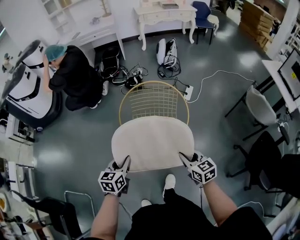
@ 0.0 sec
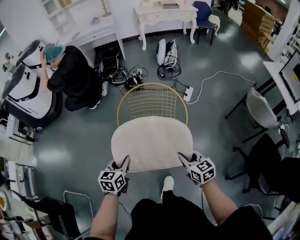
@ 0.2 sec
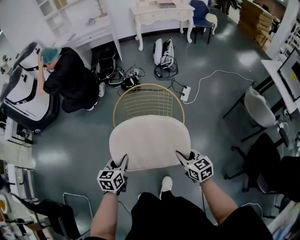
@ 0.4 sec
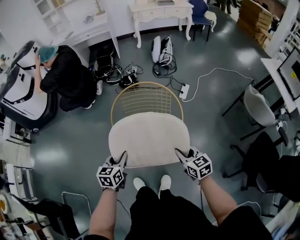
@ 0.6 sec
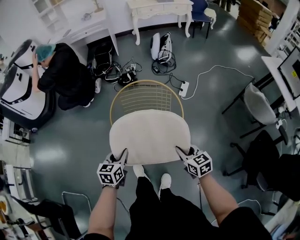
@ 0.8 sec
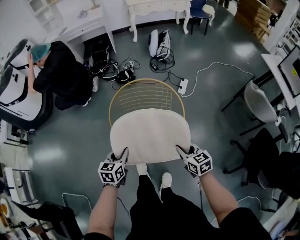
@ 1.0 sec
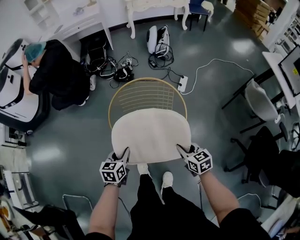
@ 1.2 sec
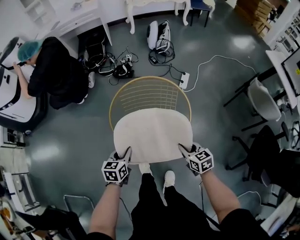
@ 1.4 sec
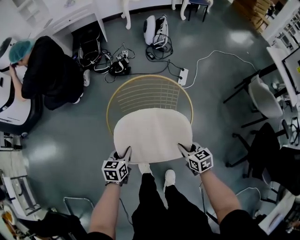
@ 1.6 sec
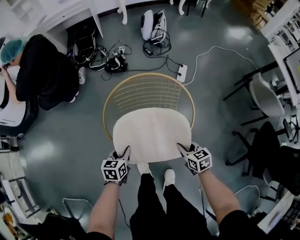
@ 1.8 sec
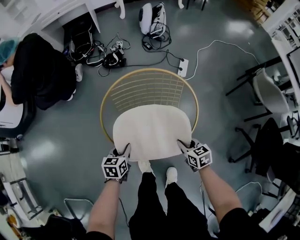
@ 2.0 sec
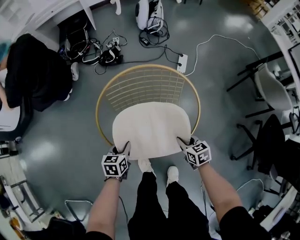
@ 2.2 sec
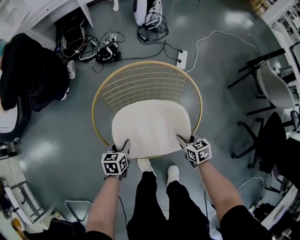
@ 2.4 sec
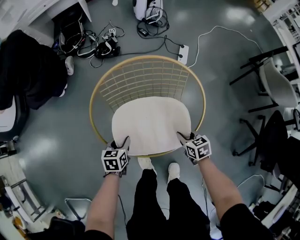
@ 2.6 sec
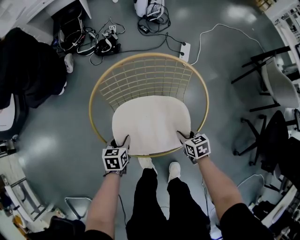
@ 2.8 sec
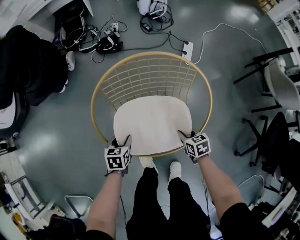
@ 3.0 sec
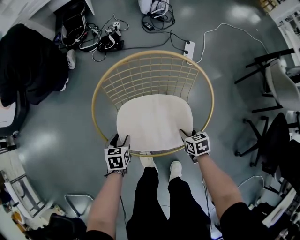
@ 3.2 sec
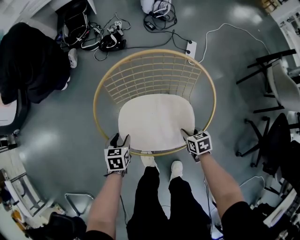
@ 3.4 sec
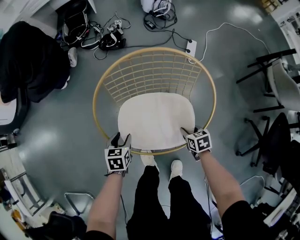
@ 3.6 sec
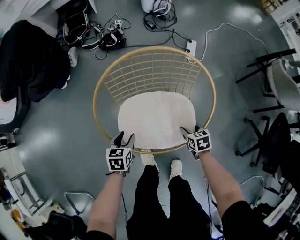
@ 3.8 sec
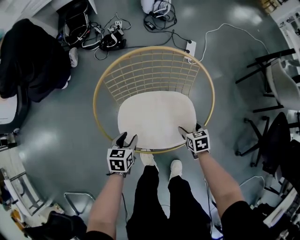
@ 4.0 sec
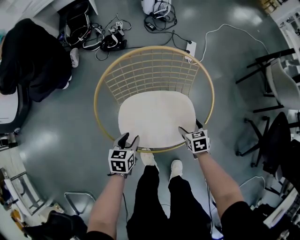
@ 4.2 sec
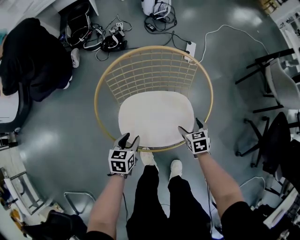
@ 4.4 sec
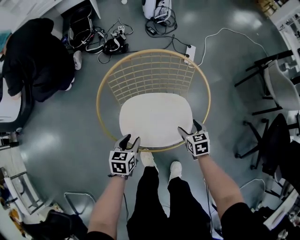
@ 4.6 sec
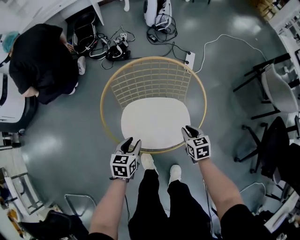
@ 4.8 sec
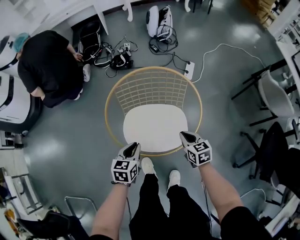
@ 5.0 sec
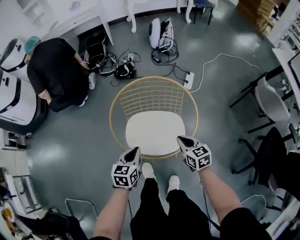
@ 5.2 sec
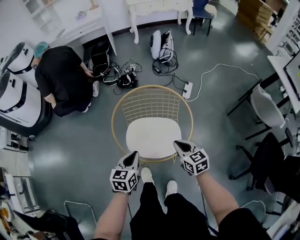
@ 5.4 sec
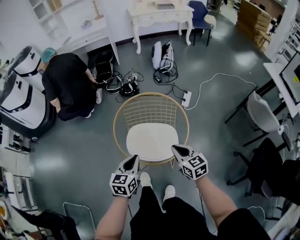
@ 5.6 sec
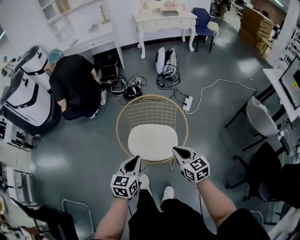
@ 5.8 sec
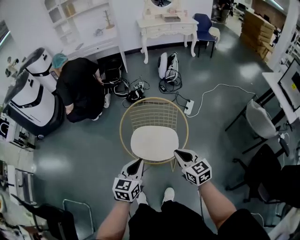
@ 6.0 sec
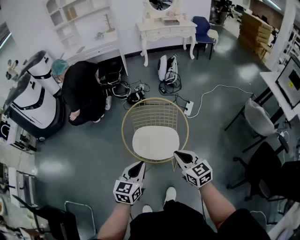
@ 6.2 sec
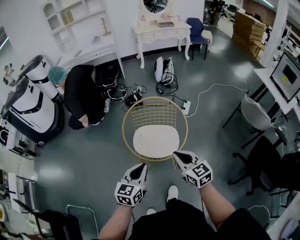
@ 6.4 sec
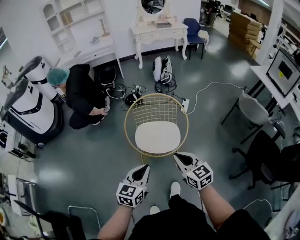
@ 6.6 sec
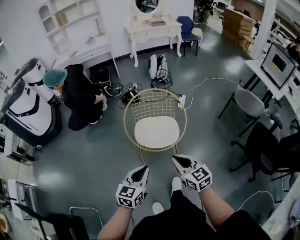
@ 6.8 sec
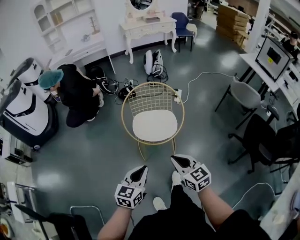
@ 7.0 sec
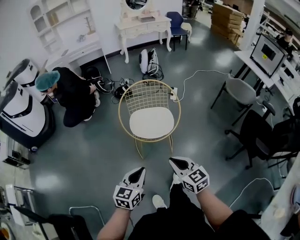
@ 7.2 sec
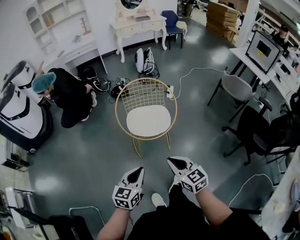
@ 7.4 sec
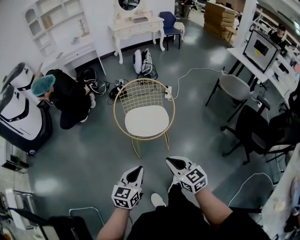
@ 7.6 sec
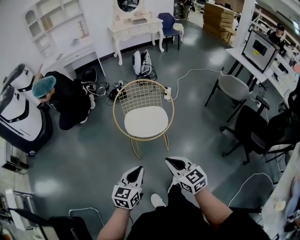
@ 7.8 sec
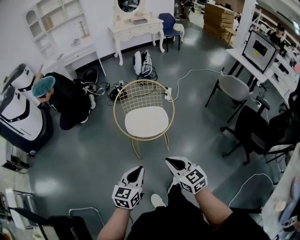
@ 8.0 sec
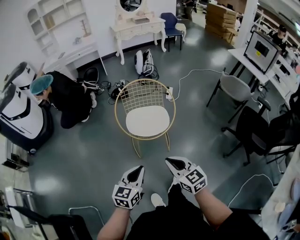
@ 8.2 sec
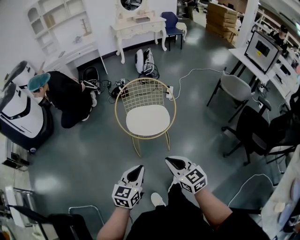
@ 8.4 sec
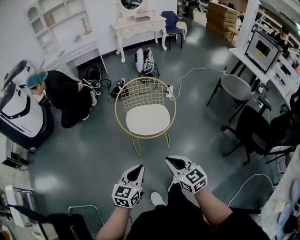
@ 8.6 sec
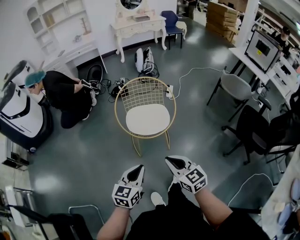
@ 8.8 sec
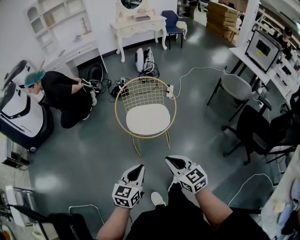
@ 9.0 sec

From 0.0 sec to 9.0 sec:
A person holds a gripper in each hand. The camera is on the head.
From 0.0 sec to 1.6 sec: The right gripper travels downward and forward by roughly 20 cm. The left gripper travels forward and downward by roughly 25 cm.
From 1.6 sec to 3.0 sec: The two grippers go about 20 cm downward. The left gripper opens its fingers.
From 3.0 sec to 4.4 sec: The left gripper moves about 5 cm. Meanwhile the right gripper opens up.
From 4.4 sec to 6.0 sec: The right gripper moves upward, about 40 cm, angles its fingers upward, by approximately 30 degrees, and closes up; the left gripper travels upward and backward by approximately 40 cm, changes its angle by approximately 30 degrees, and closes.
From 6.0 sec to 7.6 sec: The right gripper heads backward and to the left, covering about 30 cm. Meanwhile the left gripper moves backward, roughly 25 cm.
From 7.6 sec to 9.0 sec: The two grippers keep their place.

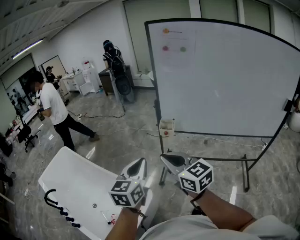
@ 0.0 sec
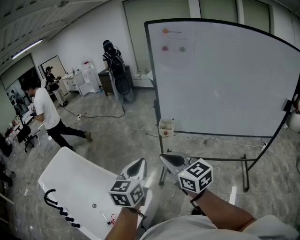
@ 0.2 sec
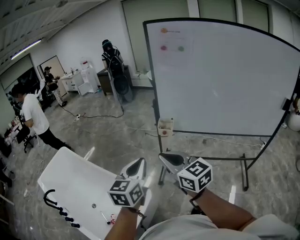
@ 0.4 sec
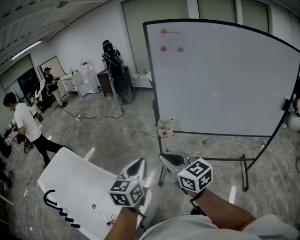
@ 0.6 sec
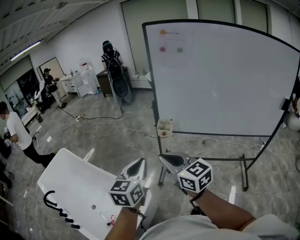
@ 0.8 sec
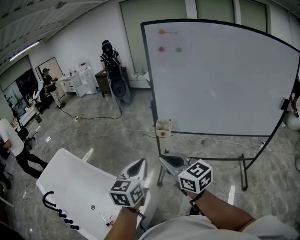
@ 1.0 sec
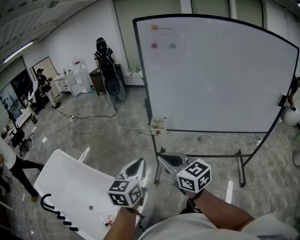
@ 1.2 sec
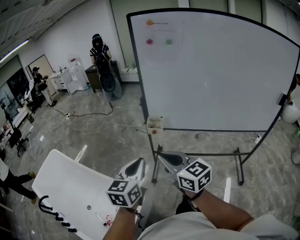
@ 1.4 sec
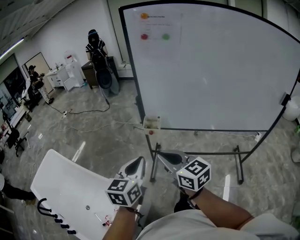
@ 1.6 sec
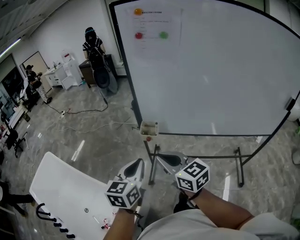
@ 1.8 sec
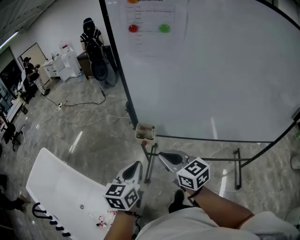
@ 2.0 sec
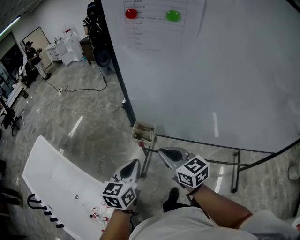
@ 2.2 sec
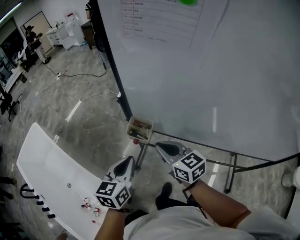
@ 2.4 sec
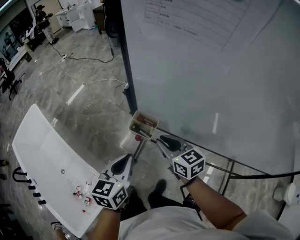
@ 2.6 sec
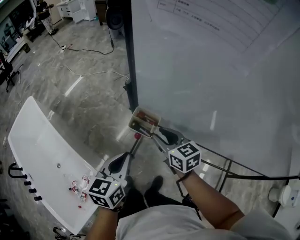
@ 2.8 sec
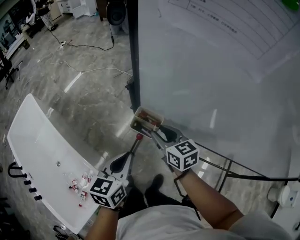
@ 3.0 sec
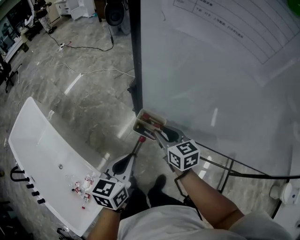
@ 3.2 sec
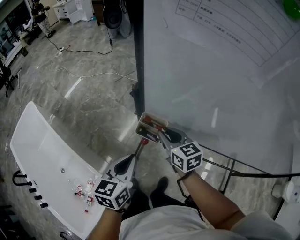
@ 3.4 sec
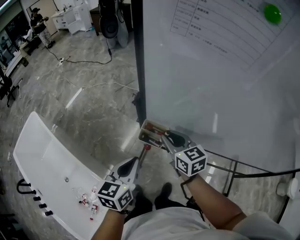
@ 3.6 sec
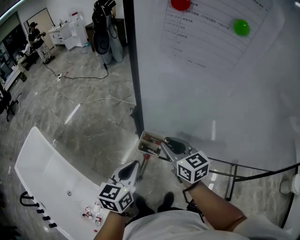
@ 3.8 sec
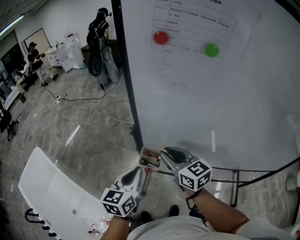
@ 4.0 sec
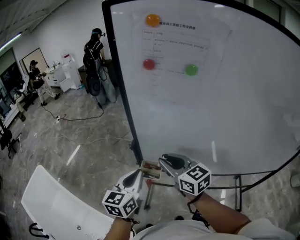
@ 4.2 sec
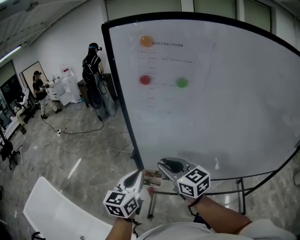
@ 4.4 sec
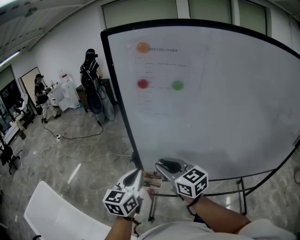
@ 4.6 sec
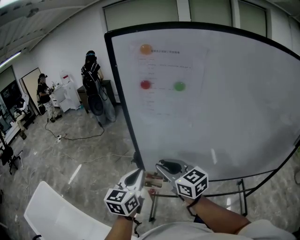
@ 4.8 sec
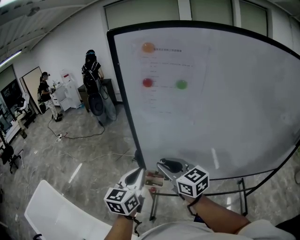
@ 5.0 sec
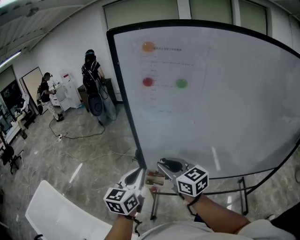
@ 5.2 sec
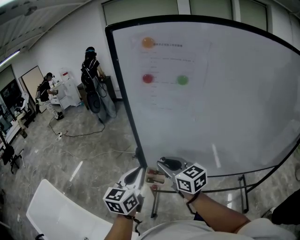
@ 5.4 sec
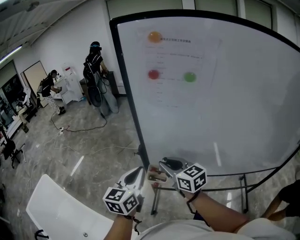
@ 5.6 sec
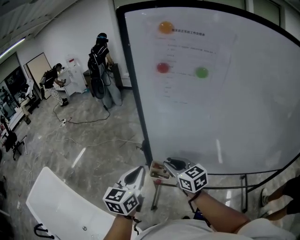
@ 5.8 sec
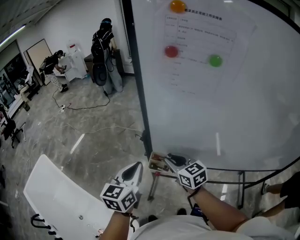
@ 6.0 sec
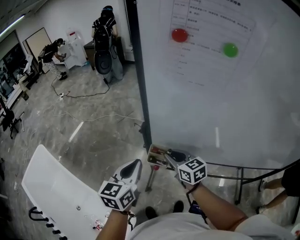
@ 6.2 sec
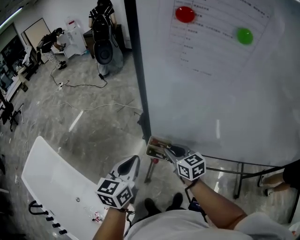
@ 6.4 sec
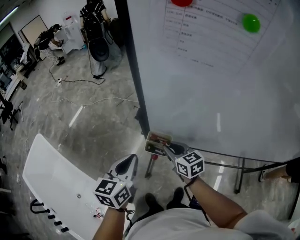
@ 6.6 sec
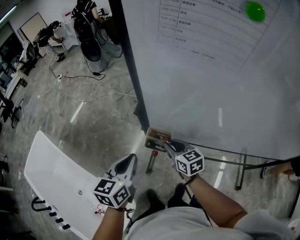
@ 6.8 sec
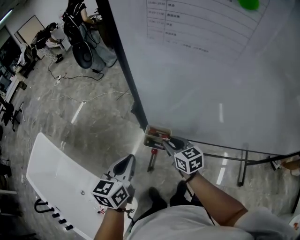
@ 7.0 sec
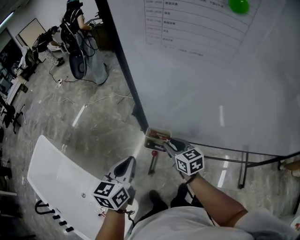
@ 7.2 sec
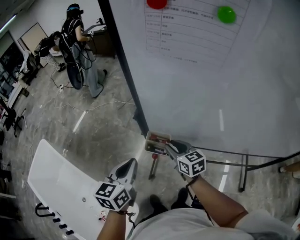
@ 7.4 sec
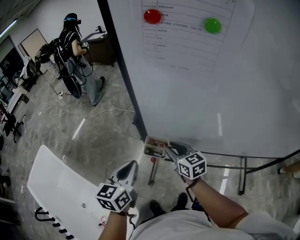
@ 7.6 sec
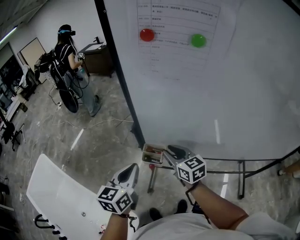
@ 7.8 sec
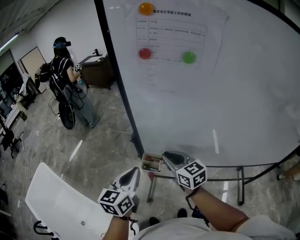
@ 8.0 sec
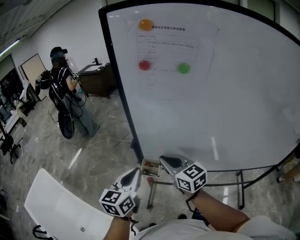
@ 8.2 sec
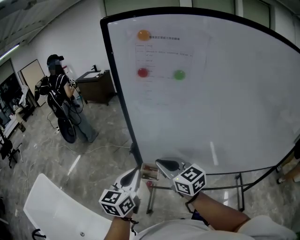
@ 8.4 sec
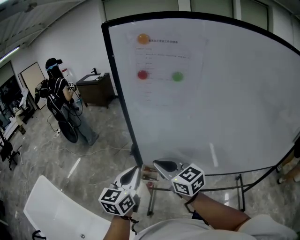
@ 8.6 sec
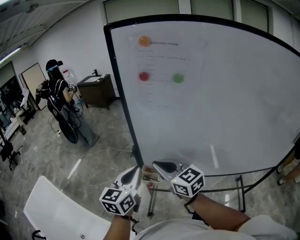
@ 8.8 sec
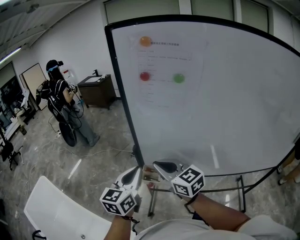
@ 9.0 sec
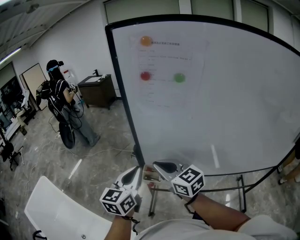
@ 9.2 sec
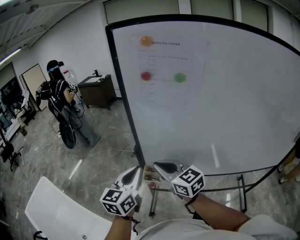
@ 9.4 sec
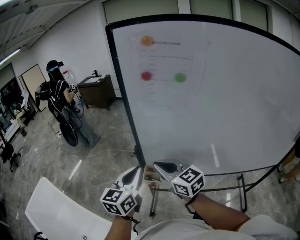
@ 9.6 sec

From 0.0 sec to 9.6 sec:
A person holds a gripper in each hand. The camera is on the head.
From 0.0 sec to 1.6 sec: The right gripper moves forward and to the right, roughly 10 cm. The left gripper is displaced to the right and forward by about 10 cm.
From 1.6 sec to 3.2 sec: Both grippers move forward and downward, some 35 cm. The right gripper opens up. Meanwhile the left gripper swivels roughly 20 degrees.
From 3.2 sec to 4.8 sec: The two grippers go some 25 cm upward. The right gripper swivels some 20 degrees; the left gripper rotates approximately 30 degrees.
From 4.8 sec to 6.4 sec: The left gripper shifts approximately 15 cm downward and to the left. Meanwhile the right gripper is displaced downward by roughly 20 cm, and turns by about 20 degrees.
From 6.4 sec to 8.0 sec: The right gripper heads upward, covering some 10 cm, while the left gripper shifts by roughly 5 cm.
From 8.0 sec to 9.6 sec: The left gripper moves upward, roughly 5 cm, while the right gripper is displaced upward and to the left by some 10 cm.

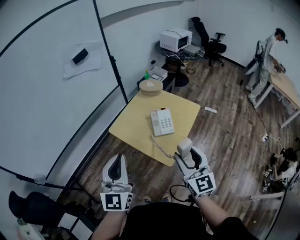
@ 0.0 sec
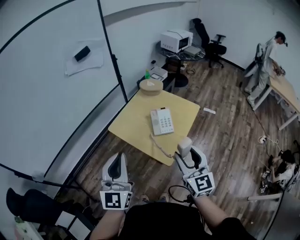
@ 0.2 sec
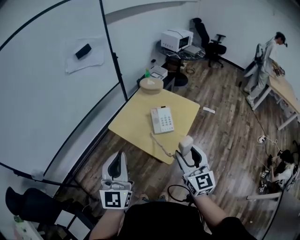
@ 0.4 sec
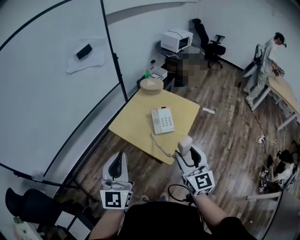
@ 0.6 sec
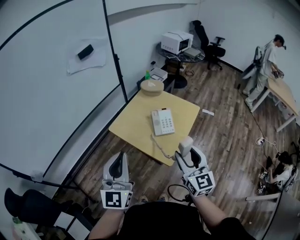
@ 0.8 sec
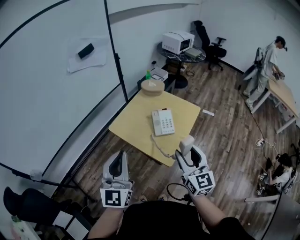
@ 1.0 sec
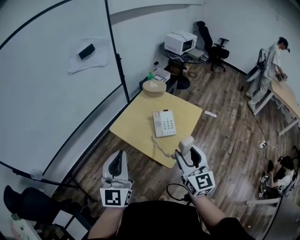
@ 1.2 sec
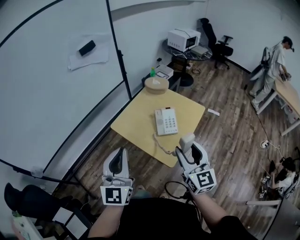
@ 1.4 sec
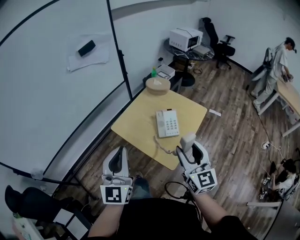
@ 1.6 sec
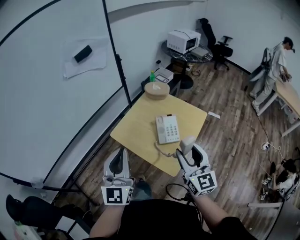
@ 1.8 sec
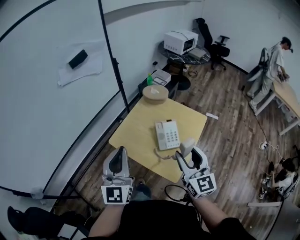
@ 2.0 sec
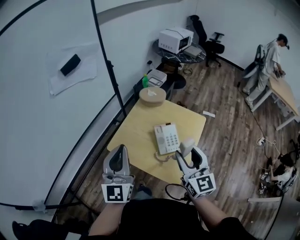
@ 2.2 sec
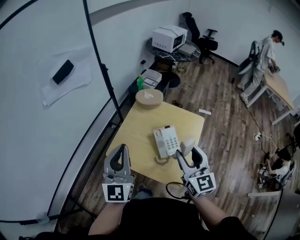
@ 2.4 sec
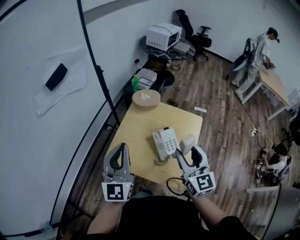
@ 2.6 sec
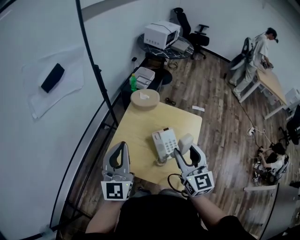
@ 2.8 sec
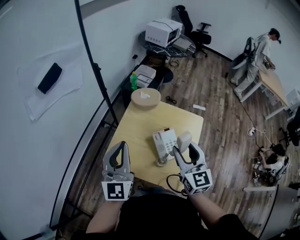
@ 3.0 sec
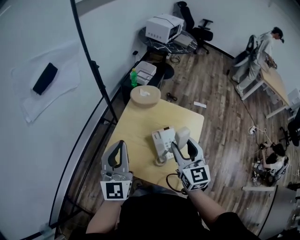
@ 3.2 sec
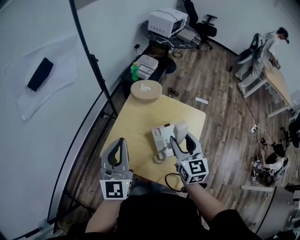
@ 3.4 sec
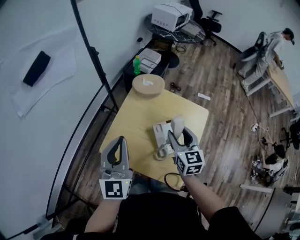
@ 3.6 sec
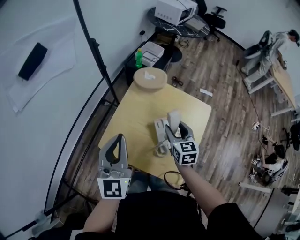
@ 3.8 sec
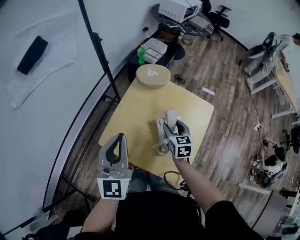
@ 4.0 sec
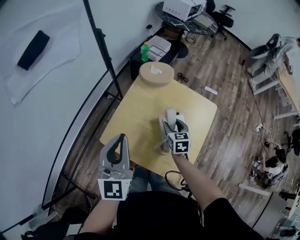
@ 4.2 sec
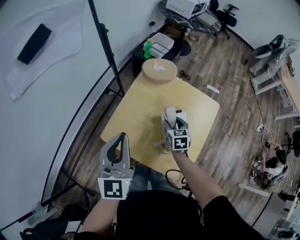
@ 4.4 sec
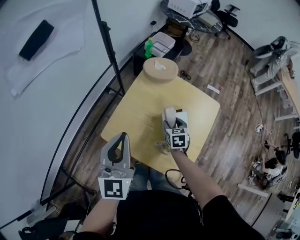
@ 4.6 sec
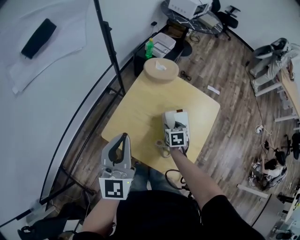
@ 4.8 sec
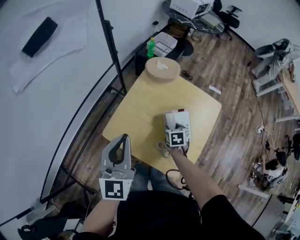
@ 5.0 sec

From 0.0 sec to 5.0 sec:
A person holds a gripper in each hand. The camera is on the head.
From 0.0 sec to 1.6 sec: The grippers both shift forward by about 5 cm.
From 1.6 sec to 3.4 sec: Both grippers move forward, about 30 cm. The right gripper rotates approximately 20 degrees.
From 3.4 sec to 5.0 sec: The right gripper is displaced downward by approximately 30 cm, and points its fingers approximately 40 degrees further downward; the left gripper travels downward by approximately 5 cm.
